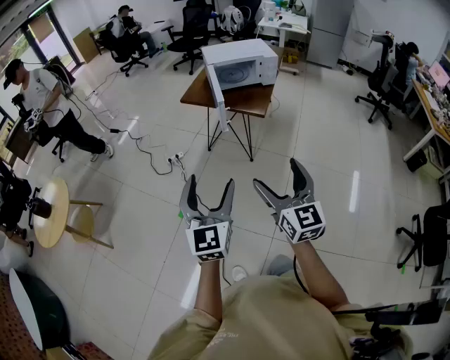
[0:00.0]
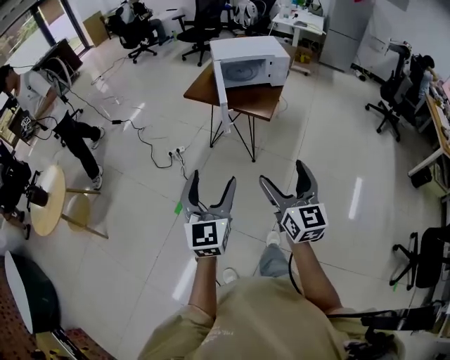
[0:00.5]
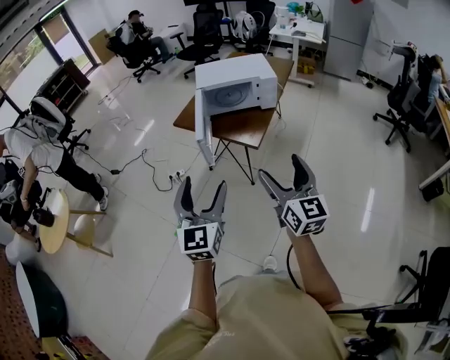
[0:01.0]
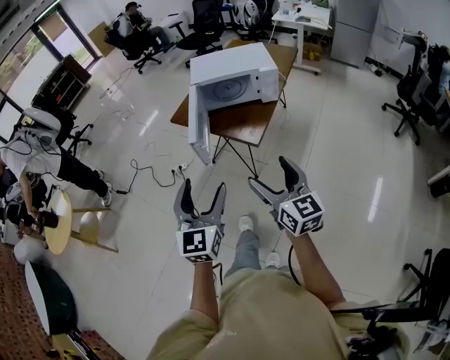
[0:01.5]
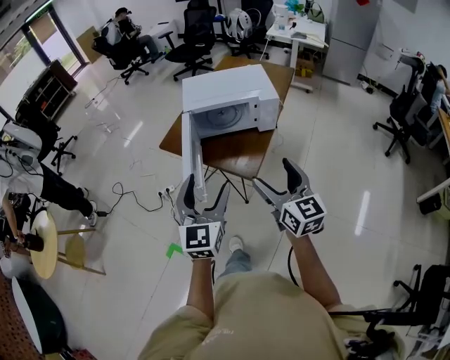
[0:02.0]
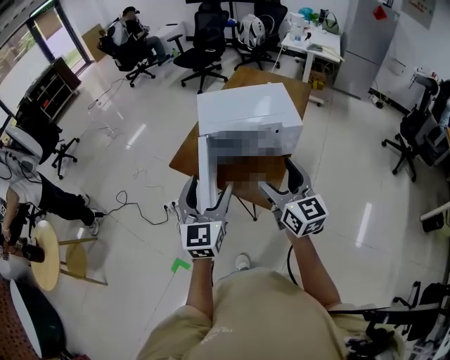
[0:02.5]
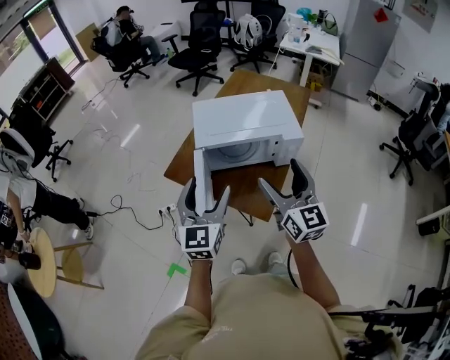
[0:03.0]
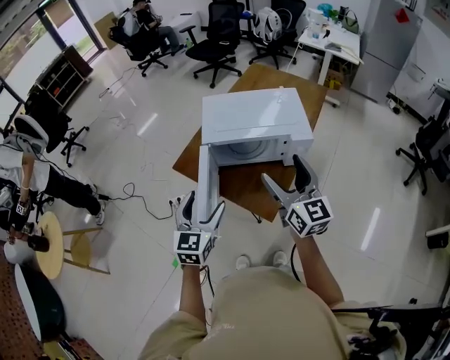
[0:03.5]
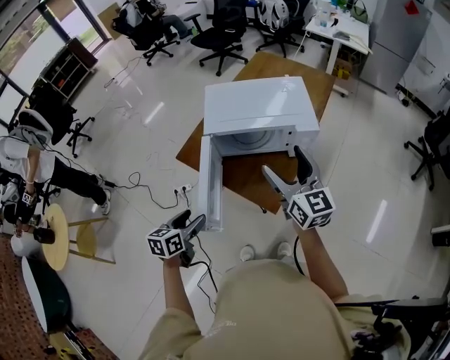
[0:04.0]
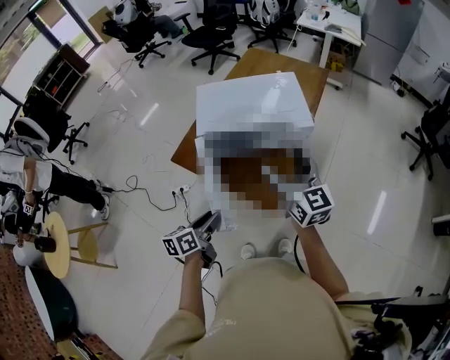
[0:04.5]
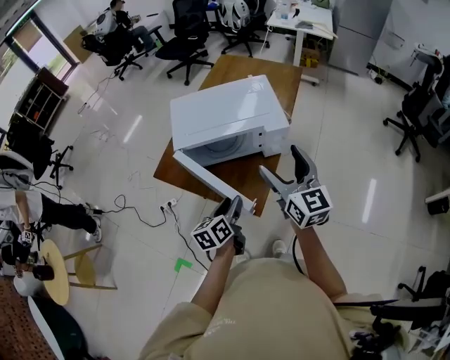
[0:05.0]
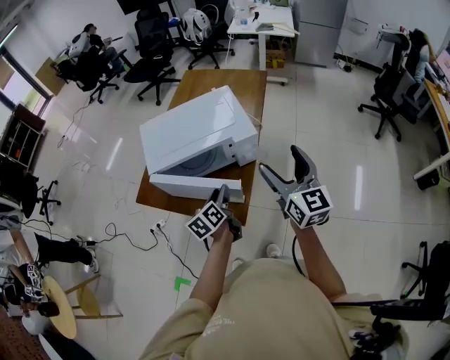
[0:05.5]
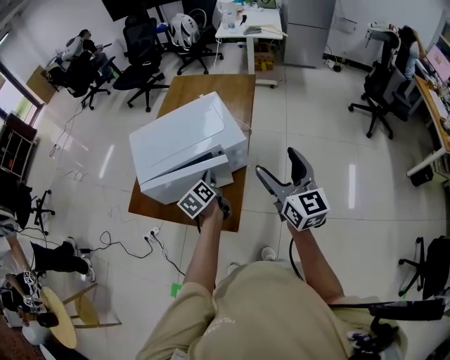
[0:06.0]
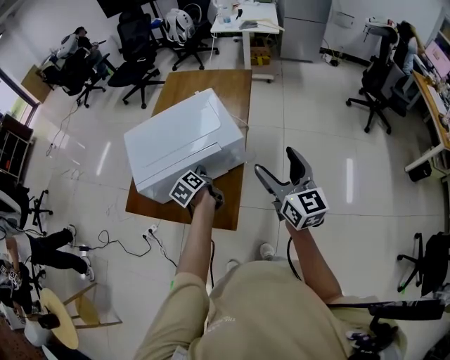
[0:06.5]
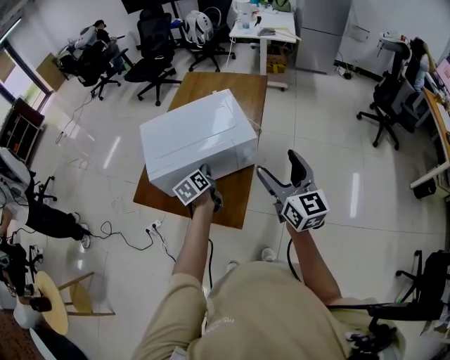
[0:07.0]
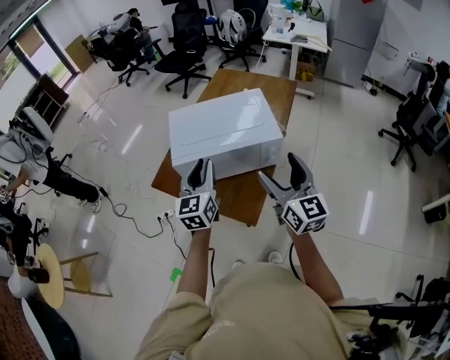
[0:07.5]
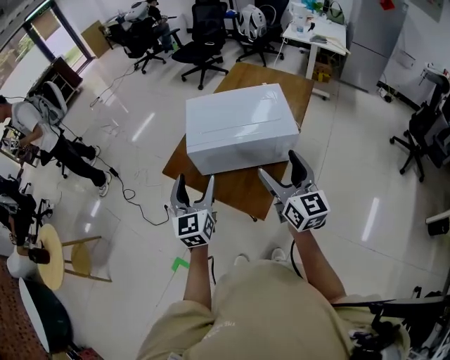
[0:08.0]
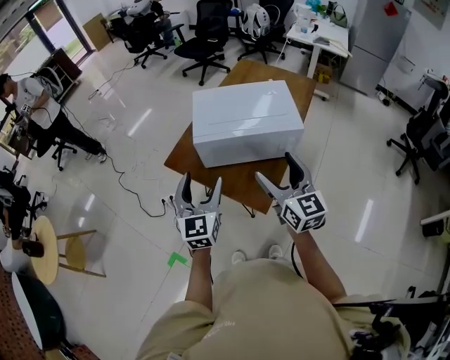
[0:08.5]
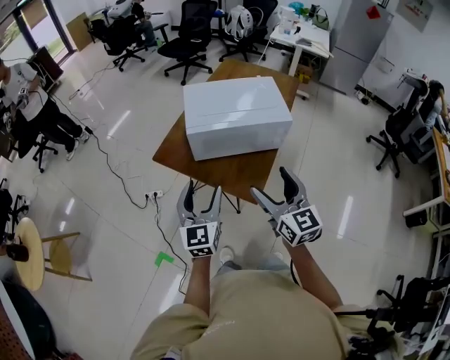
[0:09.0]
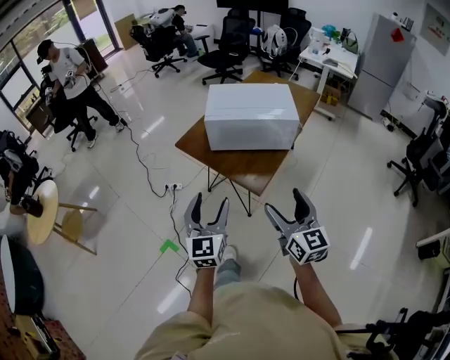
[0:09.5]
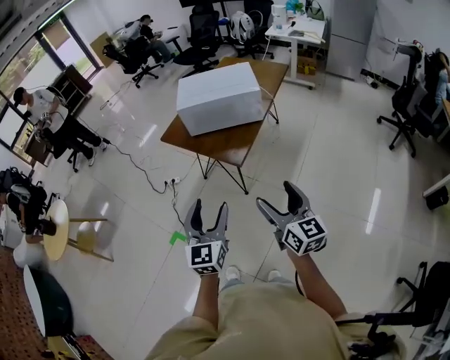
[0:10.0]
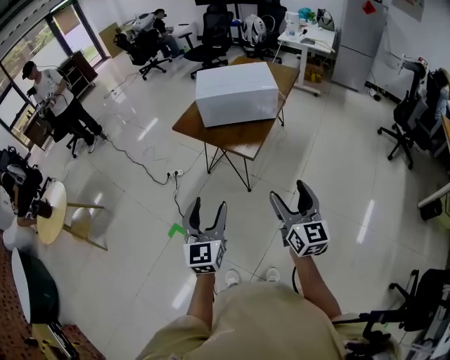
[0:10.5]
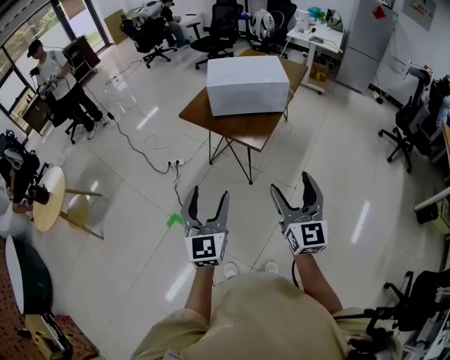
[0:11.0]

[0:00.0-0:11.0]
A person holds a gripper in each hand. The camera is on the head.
0:00.0 to 0:02.0: The two grippers travel together, forward and to the right, some 50 cm.
0:02.0 to 0:03.5: The left gripper moves forward and downward, about 25 cm. Meanwhile the right gripper shifts approximately 25 cm forward.
0:03.5 to 0:05.5: The left gripper heads to the right, forward and downward, covering some 25 cm, rotates around the line of its fingers by approximately 50 degrees, counterclockwise from behind, and closes its fingers, while the right gripper travels to the right by some 15 cm.
0:05.5 to 0:07.5: The left gripper is displaced upward and to the left by about 15 cm, and changes its angle by roughly 40 degrees. The right gripper moves to the left, about 5 cm.
0:07.5 to 0:09.0: The two grippers go about 25 cm to the left and backward. The left gripper opens its fingers.
0:09.0 to 0:11.0: The grippers both shift backward by some 40 cm.

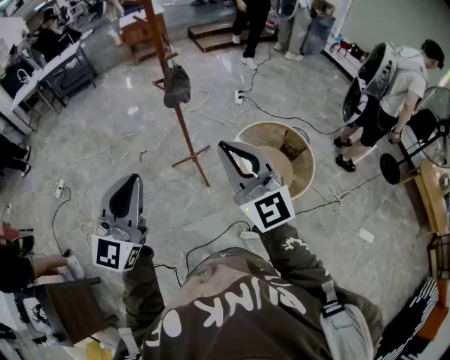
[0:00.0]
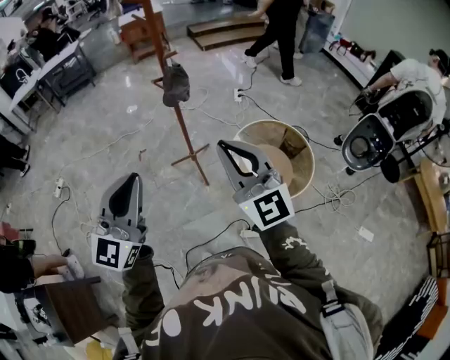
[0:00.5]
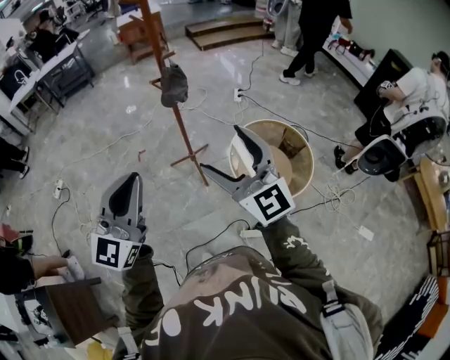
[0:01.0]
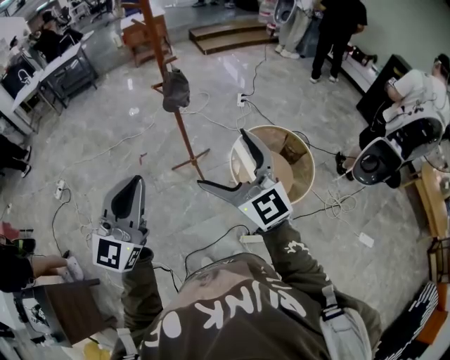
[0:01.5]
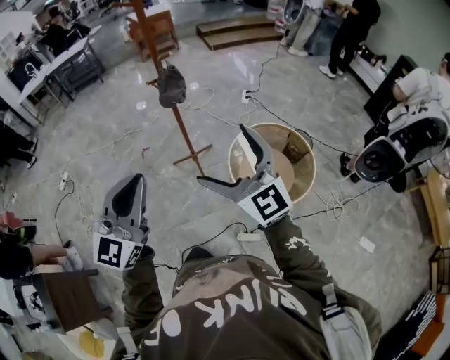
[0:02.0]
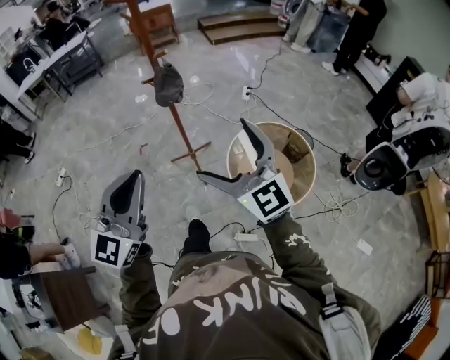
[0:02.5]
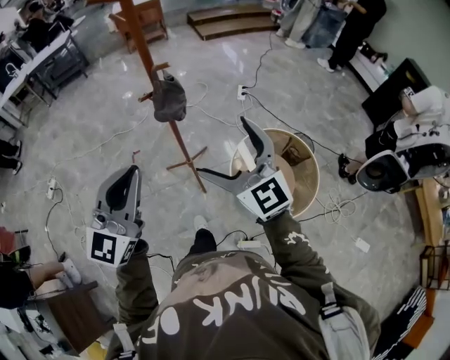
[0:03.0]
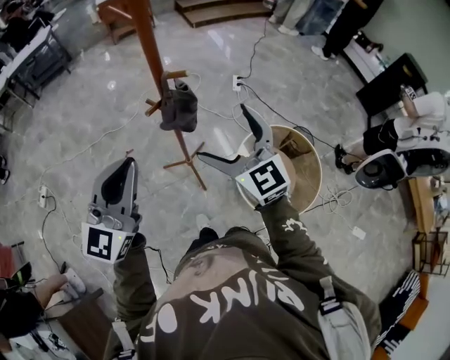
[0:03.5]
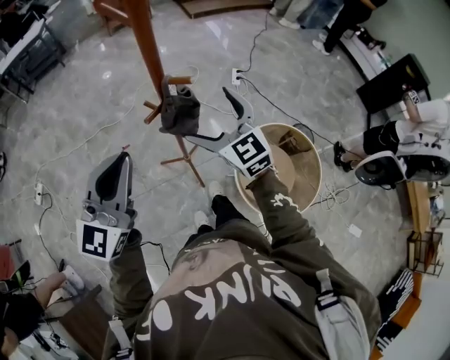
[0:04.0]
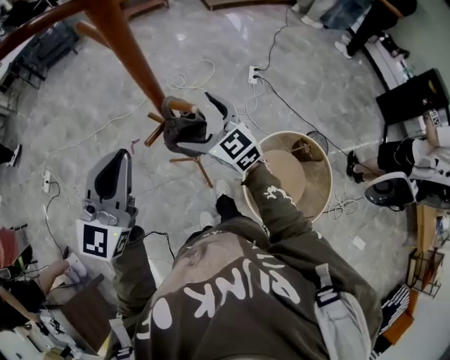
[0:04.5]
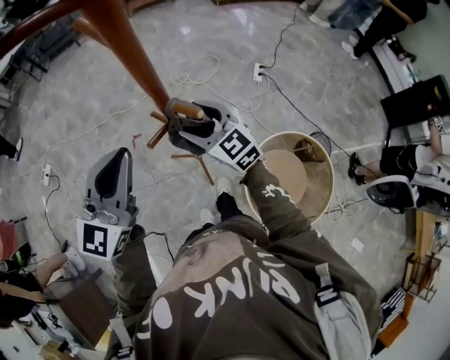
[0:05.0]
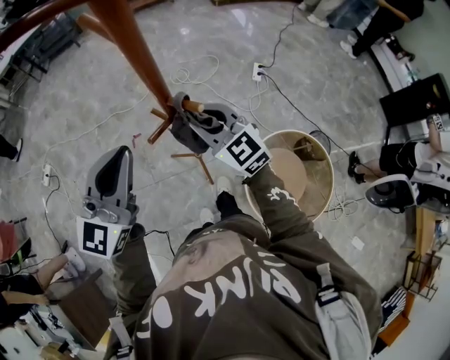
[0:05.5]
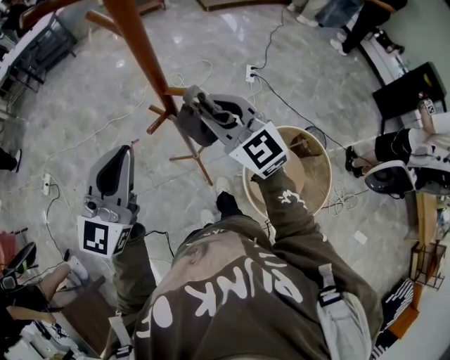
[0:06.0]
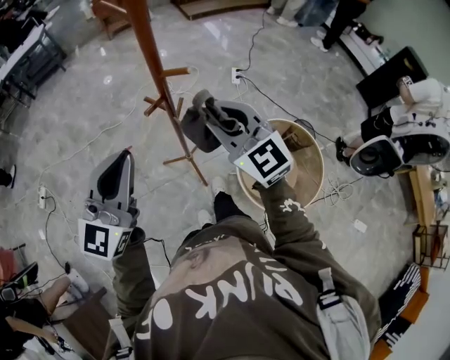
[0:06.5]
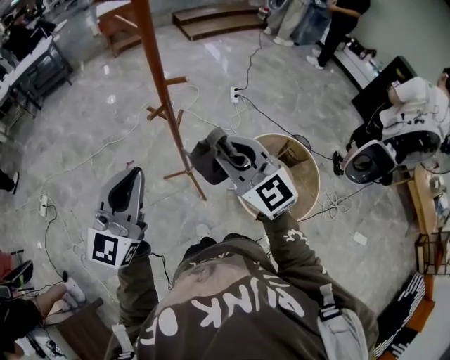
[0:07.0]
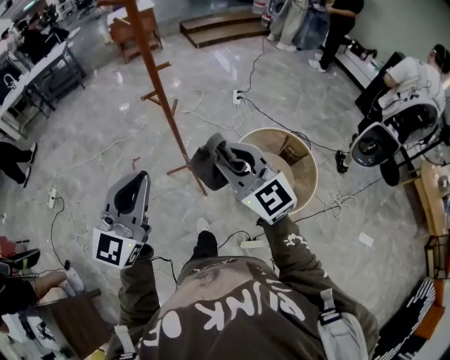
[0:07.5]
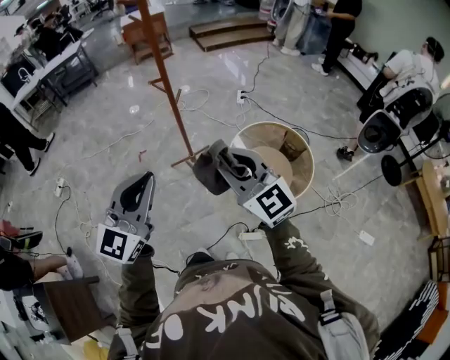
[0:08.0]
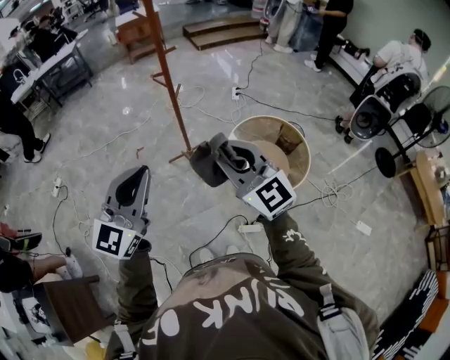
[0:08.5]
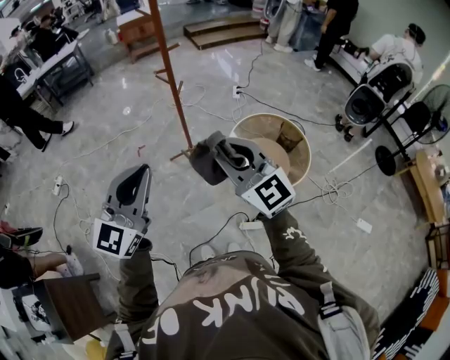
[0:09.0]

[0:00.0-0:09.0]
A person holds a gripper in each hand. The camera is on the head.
0:00.0 to 0:02.0: The right gripper shifts by roughly 5 cm, and opens its fingers. Meanwhile the left gripper travels to the right by roughly 5 cm.
0:02.0 to 0:04.5: The pair of grippers is taken forward, about 50 cm. The right gripper turns by about 20 degrees.
0:04.5 to 0:07.0: The left gripper moves backward, about 15 cm. Meanwhile the right gripper travels backward and upward by some 25 cm, and closes up.
0:07.0 to 0:09.0: Both grippers move backward, roughly 35 cm.

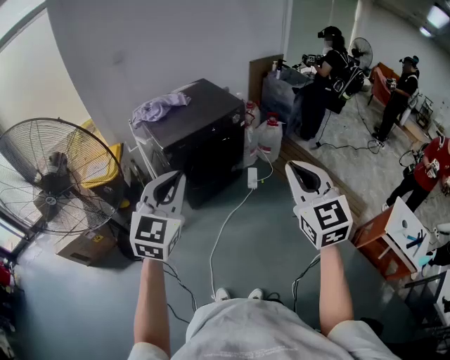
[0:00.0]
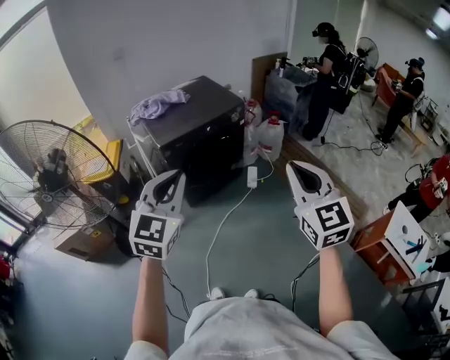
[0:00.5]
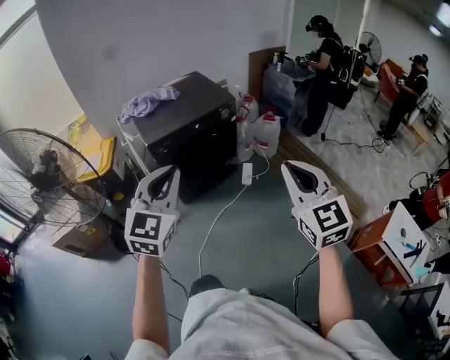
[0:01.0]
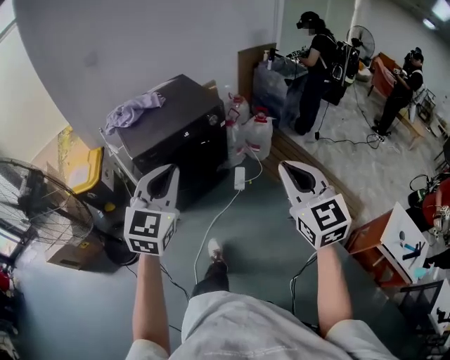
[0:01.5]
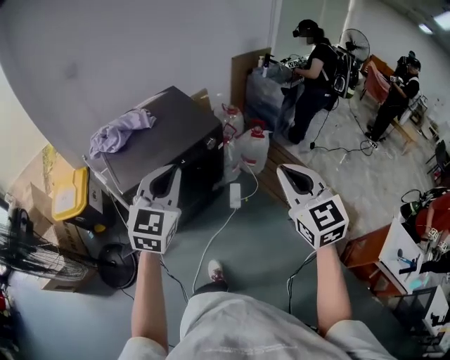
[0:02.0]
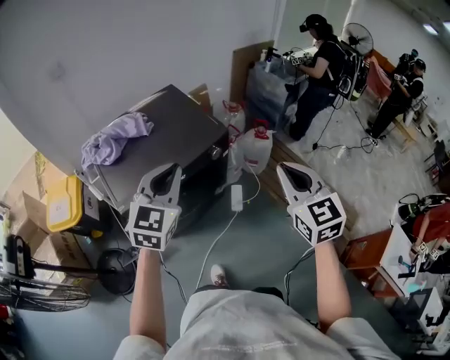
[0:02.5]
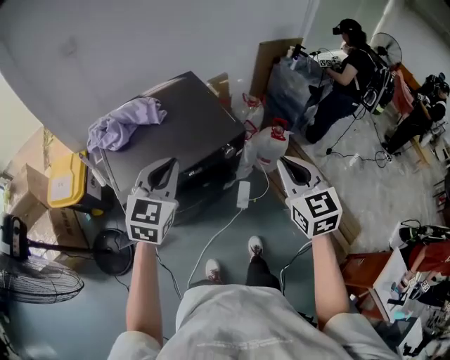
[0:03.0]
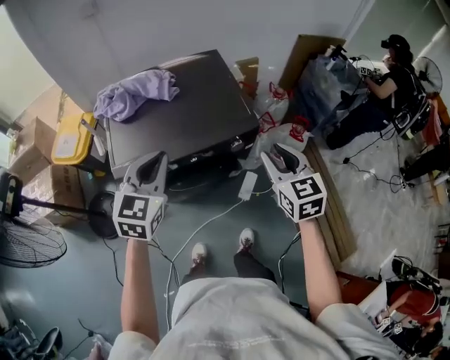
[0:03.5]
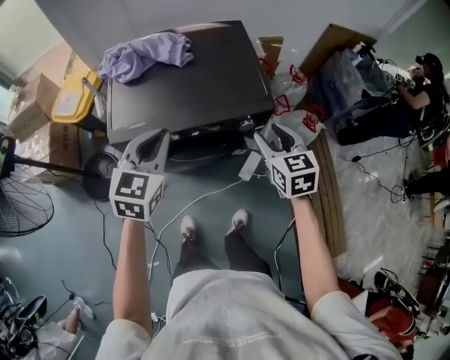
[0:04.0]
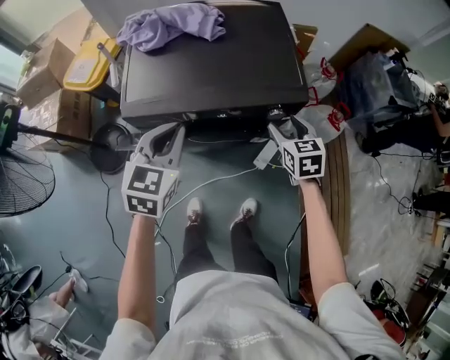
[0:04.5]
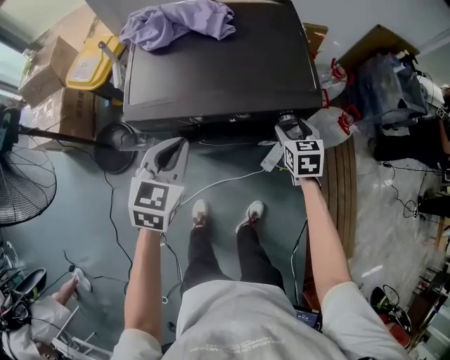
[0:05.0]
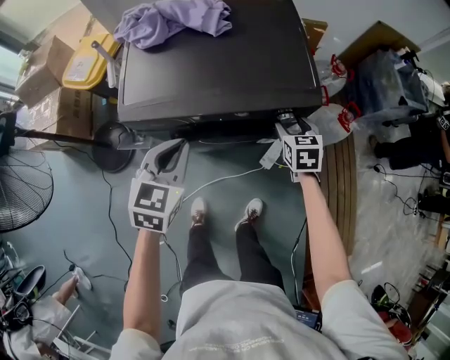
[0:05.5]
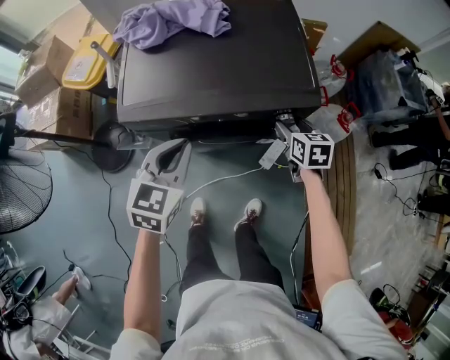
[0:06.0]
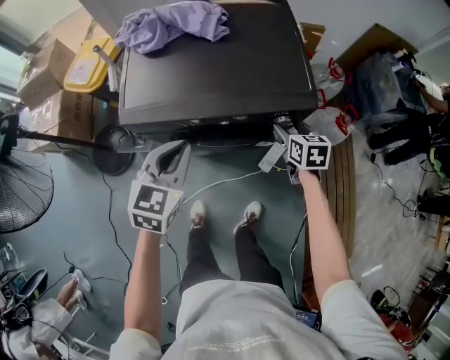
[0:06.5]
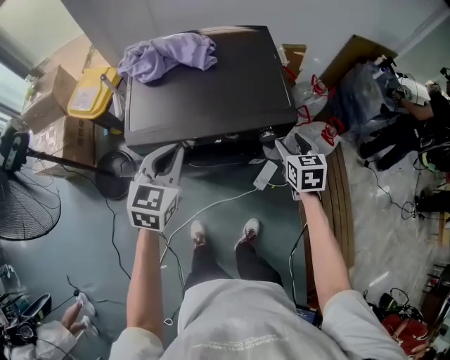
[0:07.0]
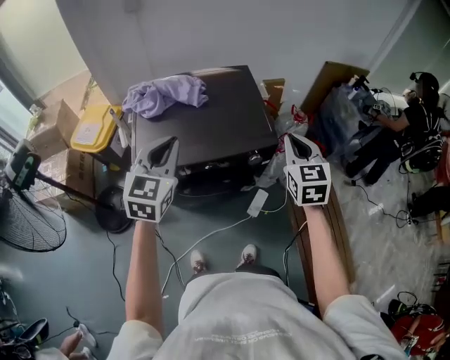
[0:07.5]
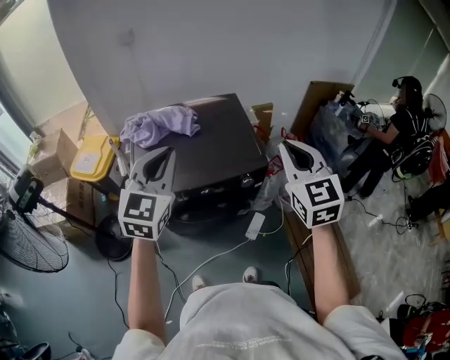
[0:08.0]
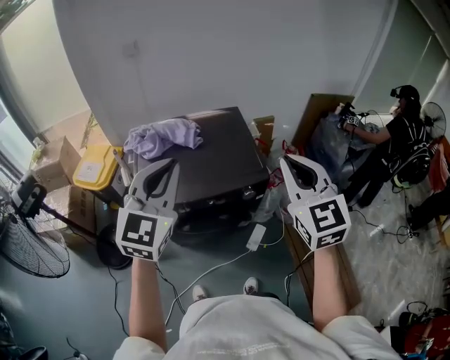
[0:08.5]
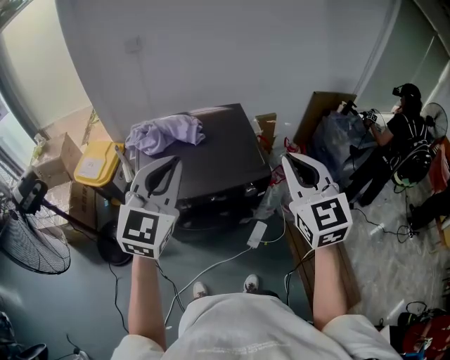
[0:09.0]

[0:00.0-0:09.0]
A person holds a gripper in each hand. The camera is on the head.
0:00.0 to 0:02.0: Both grippers travel together forward, roughly 30 cm.
0:02.0 to 0:04.5: The right gripper moves some 50 cm, changes its angle by approximately 40 degrees, and opens its fingers. Meanwhile the left gripper shifts about 20 cm downward, and turns by approximately 40 degrees.
0:04.5 to 0:07.0: The right gripper goes downward and returns, roughly 5 cm each way.
0:07.0 to 0:09.0: The two grippers go about 30 cm upward. The left gripper turns by approximately 30 degrees, while the right gripper tips its fingers upward by about 30 degrees, and closes its fingers.
